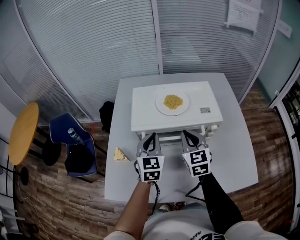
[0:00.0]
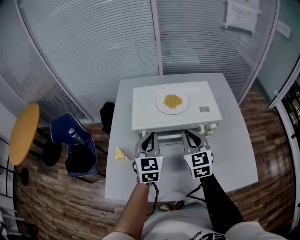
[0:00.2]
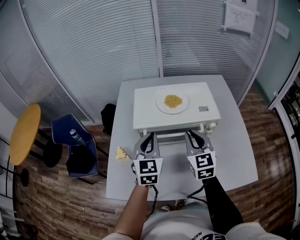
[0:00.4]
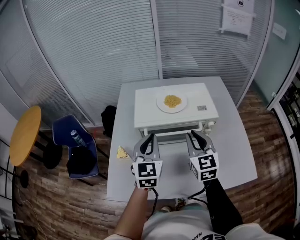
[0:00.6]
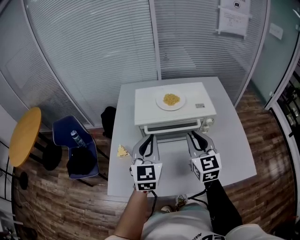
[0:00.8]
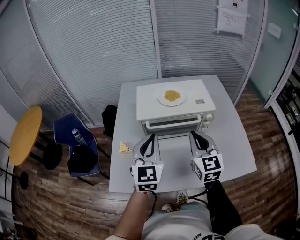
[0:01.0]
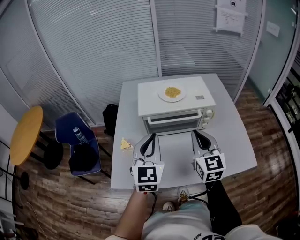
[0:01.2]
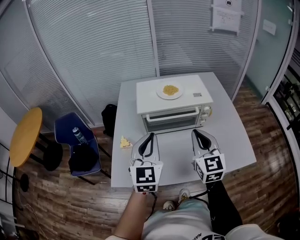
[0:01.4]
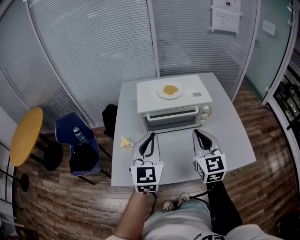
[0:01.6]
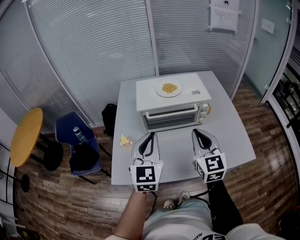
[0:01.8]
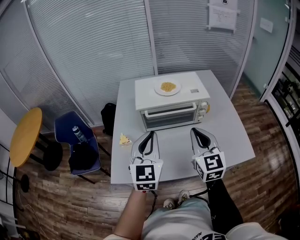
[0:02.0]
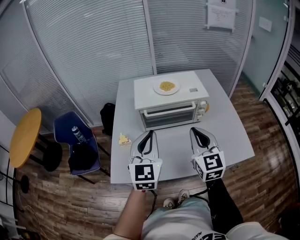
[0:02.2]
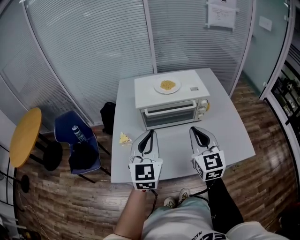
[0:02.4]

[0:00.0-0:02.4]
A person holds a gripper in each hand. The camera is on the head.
0:00.0 to 0:01.2: Both grippers move backward and upward, some 15 cm.
0:01.2 to 0:02.4: The right gripper travels backward by approximately 5 cm.

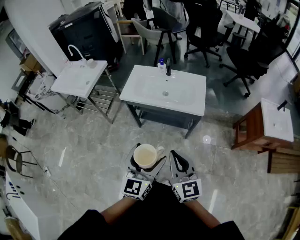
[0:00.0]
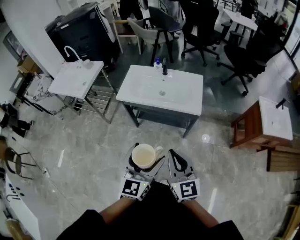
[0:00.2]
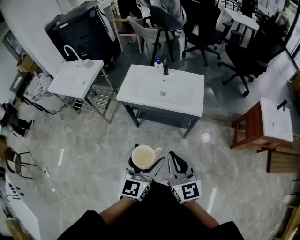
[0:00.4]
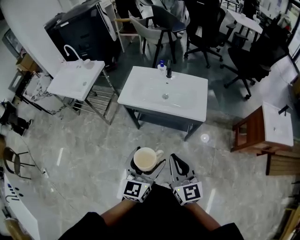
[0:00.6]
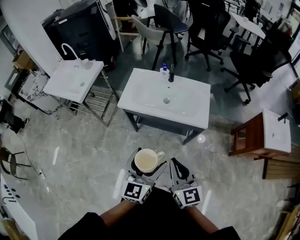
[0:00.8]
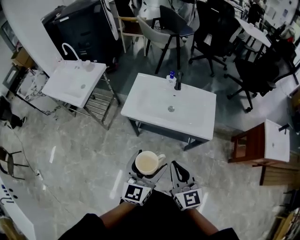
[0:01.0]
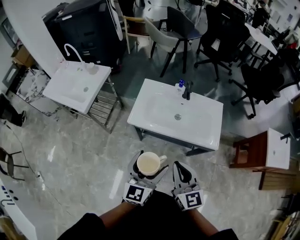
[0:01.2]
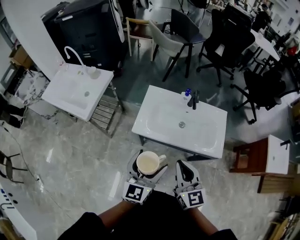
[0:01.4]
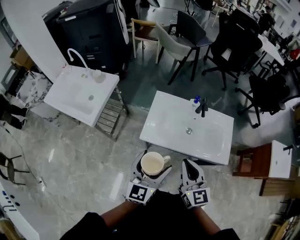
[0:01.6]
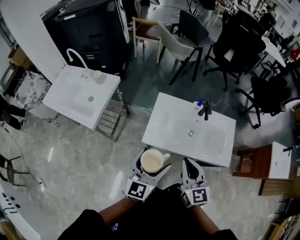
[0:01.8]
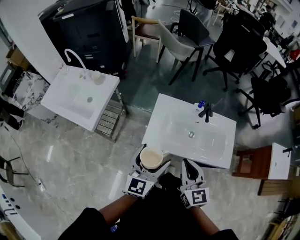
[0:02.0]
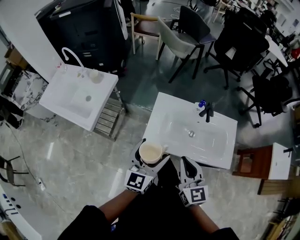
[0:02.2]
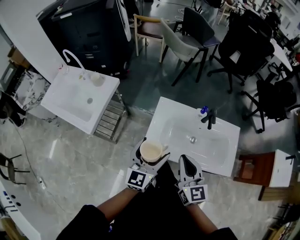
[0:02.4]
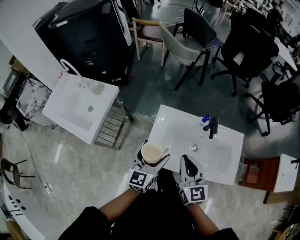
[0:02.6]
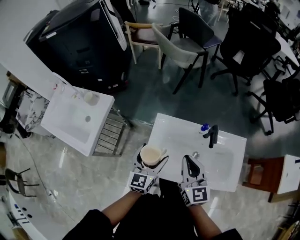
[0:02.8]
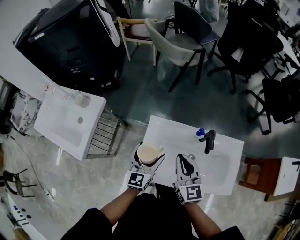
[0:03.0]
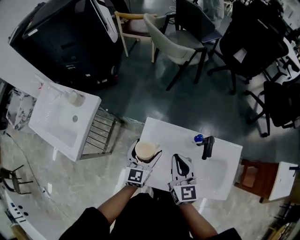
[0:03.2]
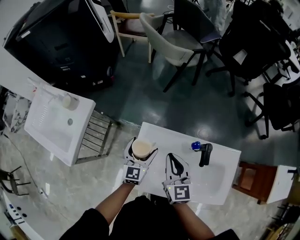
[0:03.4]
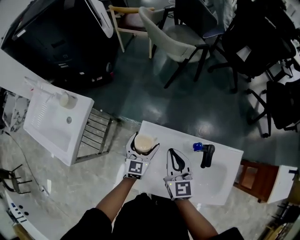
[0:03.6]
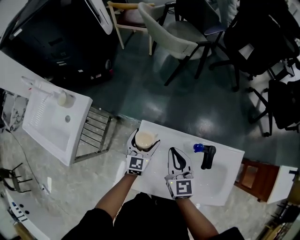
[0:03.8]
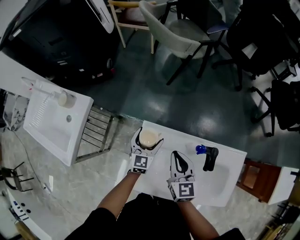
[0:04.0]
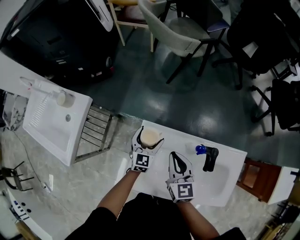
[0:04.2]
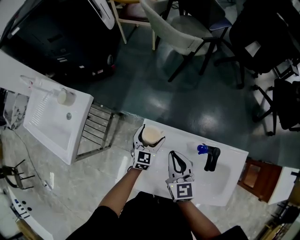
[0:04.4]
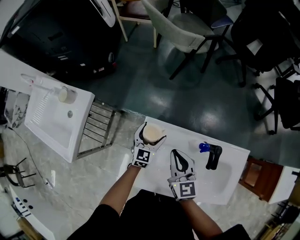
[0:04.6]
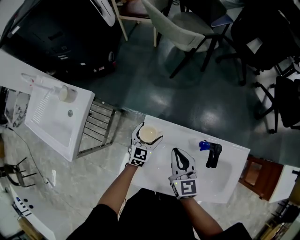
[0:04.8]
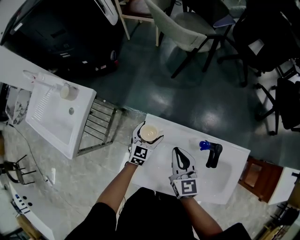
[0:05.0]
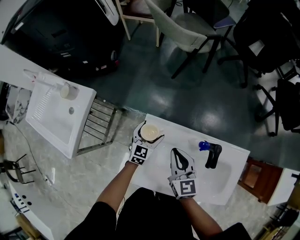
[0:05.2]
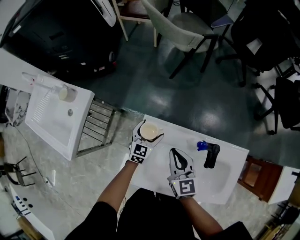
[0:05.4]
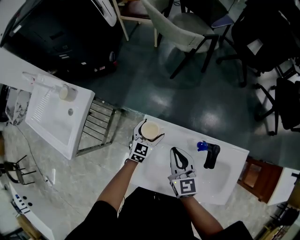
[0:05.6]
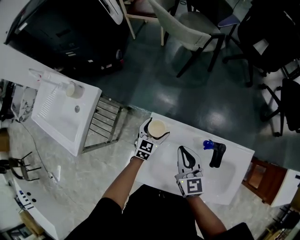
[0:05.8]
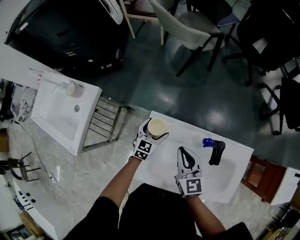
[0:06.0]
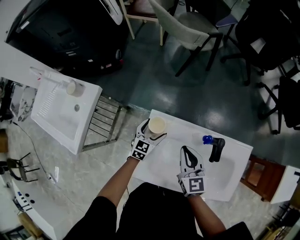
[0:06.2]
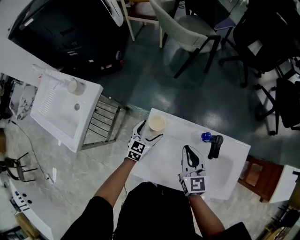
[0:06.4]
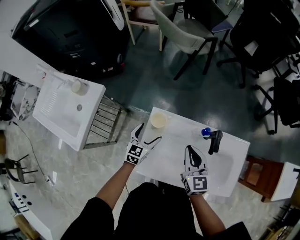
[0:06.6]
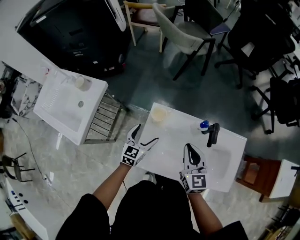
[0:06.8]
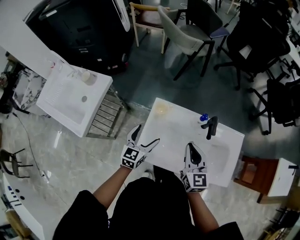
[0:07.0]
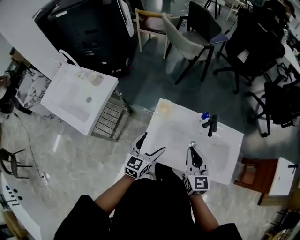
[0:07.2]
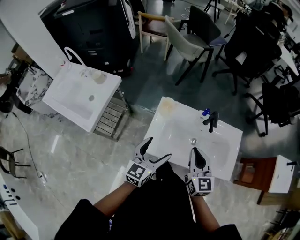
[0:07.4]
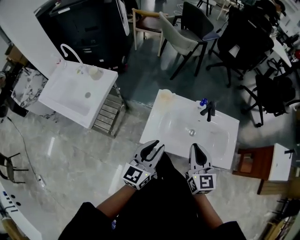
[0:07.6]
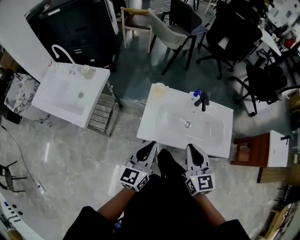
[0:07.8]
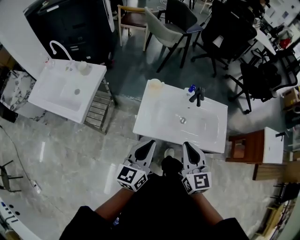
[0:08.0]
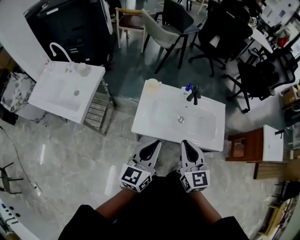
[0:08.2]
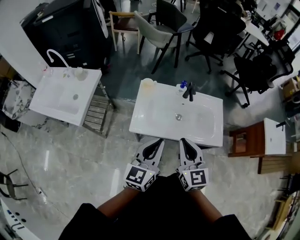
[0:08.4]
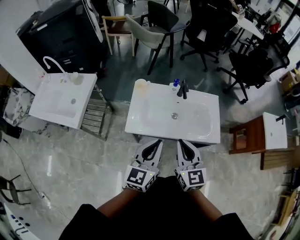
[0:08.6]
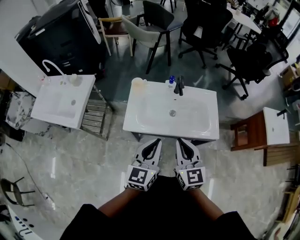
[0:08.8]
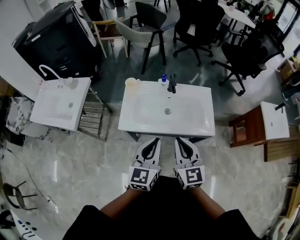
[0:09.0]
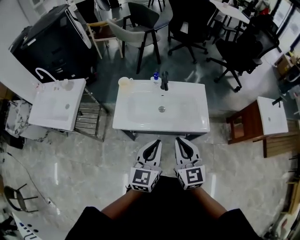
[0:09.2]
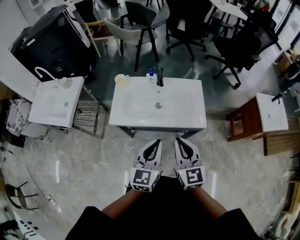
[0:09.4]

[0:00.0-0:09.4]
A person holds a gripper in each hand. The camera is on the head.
0:00.0 to 0:01.6: The two grippers travel together, forward and to the left, approximately 40 cm.
0:01.6 to 0:03.2: The right gripper is displaced forward by some 35 cm; the left gripper travels forward and downward by about 40 cm.
0:03.2 to 0:04.8: The right gripper heads downward and forward, covering approximately 10 cm. Meanwhile the left gripper heads downward and forward, covering some 20 cm.
0:04.8 to 0:06.2: The grippers stay close to where they were, moving slightly.
0:06.2 to 0:07.8: The grippers both shift backward and upward by roughly 40 cm. The left gripper rotates approximately 30 degrees, and closes its fingers.
0:07.8 to 0:09.4: The two grippers go about 25 cm to the right and backward.

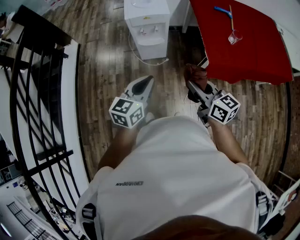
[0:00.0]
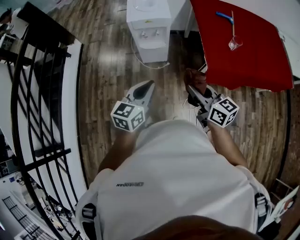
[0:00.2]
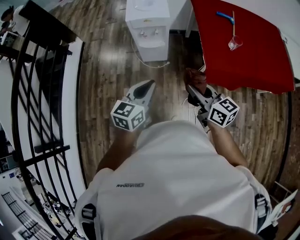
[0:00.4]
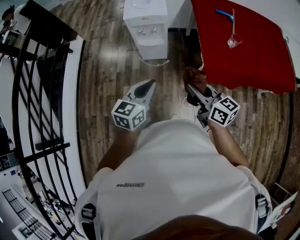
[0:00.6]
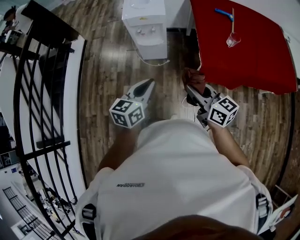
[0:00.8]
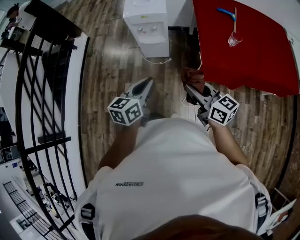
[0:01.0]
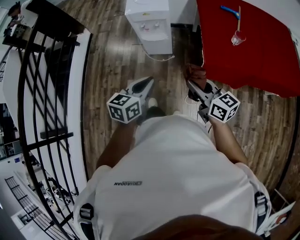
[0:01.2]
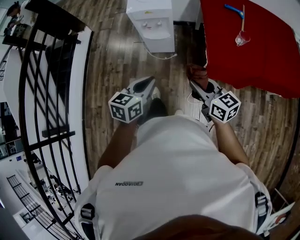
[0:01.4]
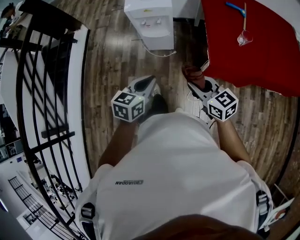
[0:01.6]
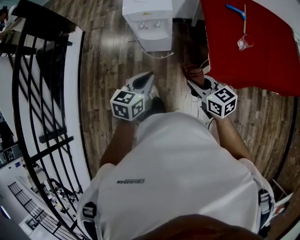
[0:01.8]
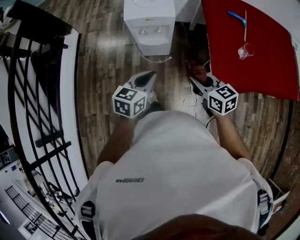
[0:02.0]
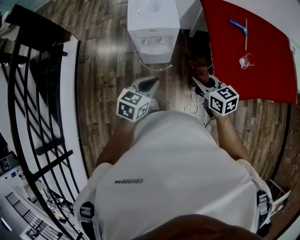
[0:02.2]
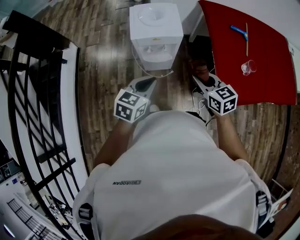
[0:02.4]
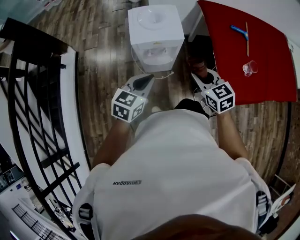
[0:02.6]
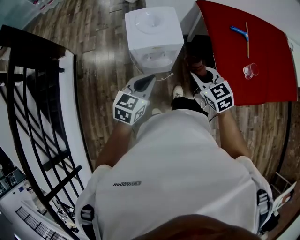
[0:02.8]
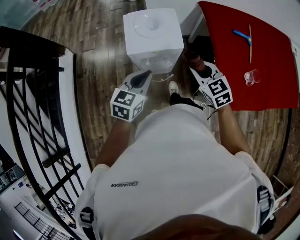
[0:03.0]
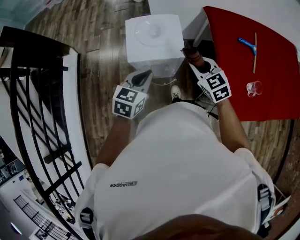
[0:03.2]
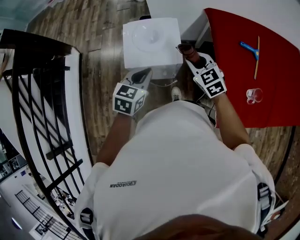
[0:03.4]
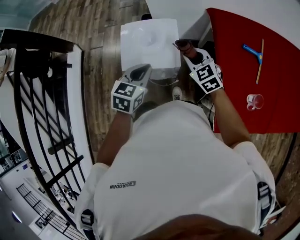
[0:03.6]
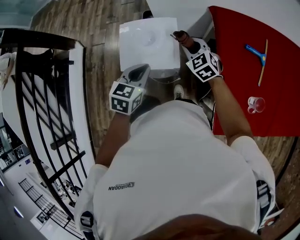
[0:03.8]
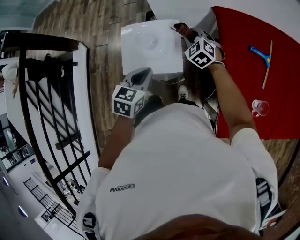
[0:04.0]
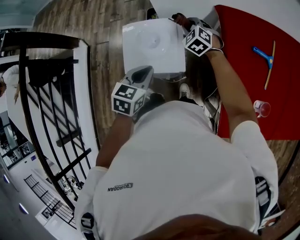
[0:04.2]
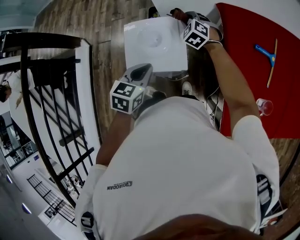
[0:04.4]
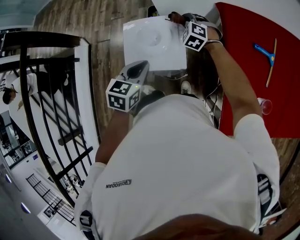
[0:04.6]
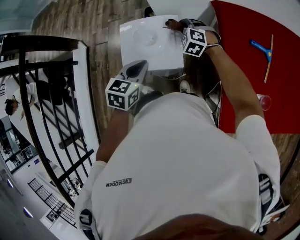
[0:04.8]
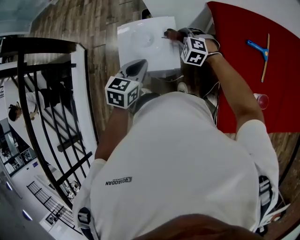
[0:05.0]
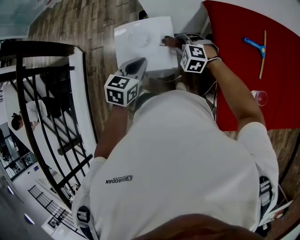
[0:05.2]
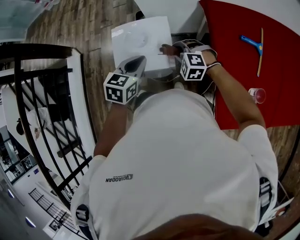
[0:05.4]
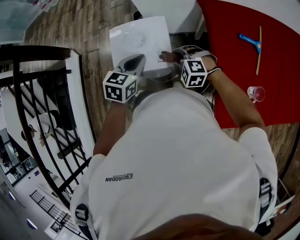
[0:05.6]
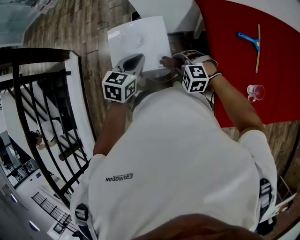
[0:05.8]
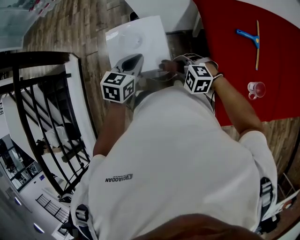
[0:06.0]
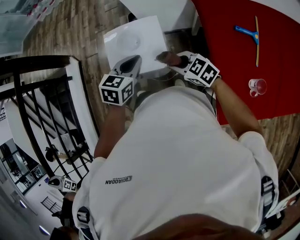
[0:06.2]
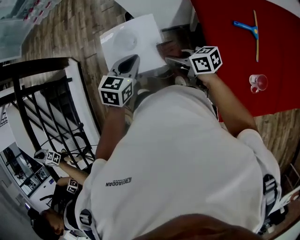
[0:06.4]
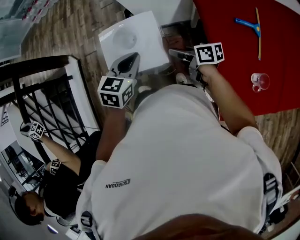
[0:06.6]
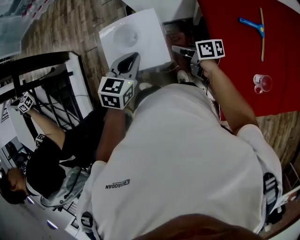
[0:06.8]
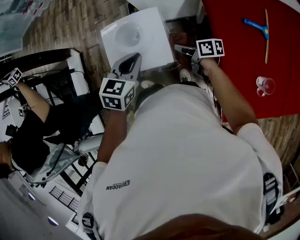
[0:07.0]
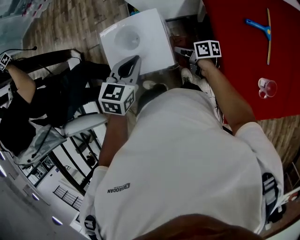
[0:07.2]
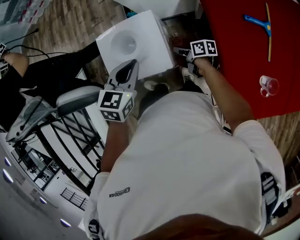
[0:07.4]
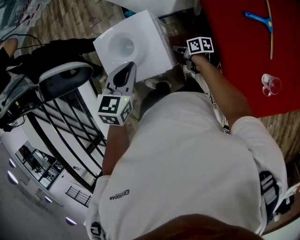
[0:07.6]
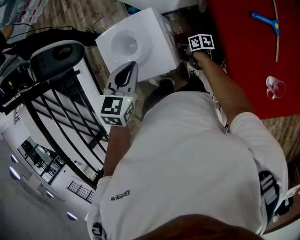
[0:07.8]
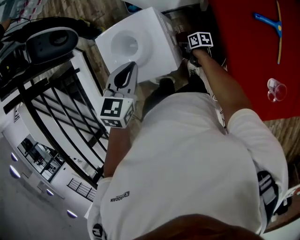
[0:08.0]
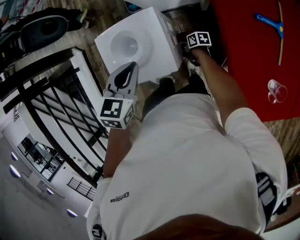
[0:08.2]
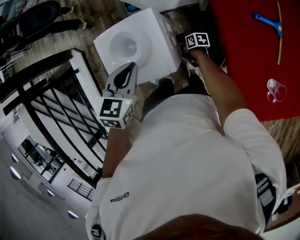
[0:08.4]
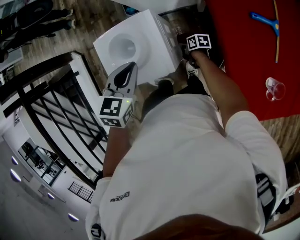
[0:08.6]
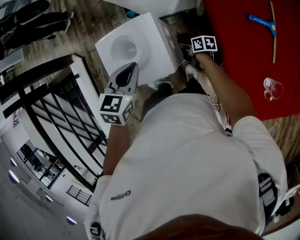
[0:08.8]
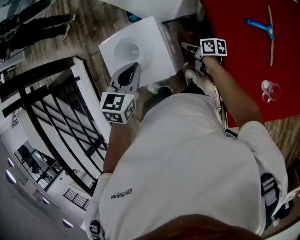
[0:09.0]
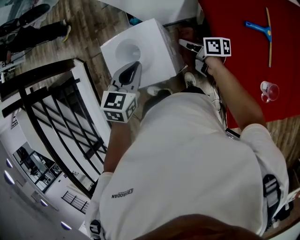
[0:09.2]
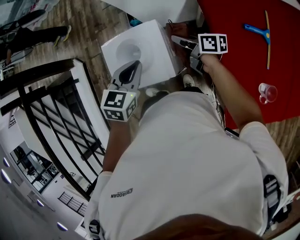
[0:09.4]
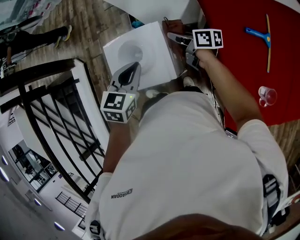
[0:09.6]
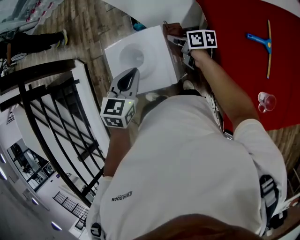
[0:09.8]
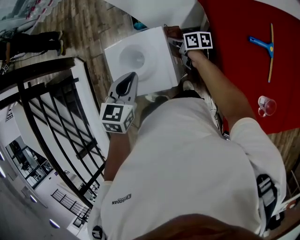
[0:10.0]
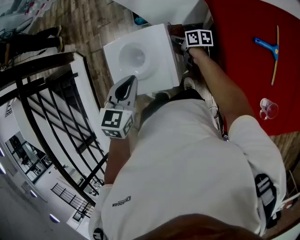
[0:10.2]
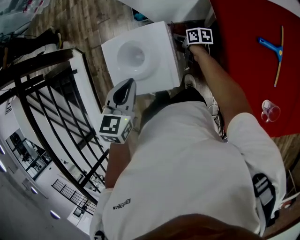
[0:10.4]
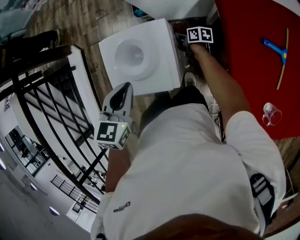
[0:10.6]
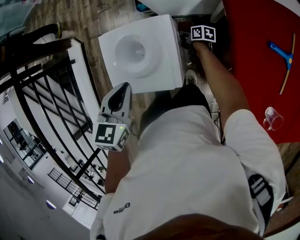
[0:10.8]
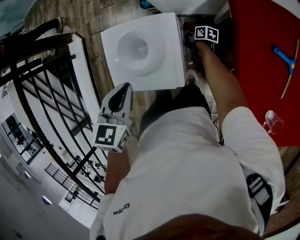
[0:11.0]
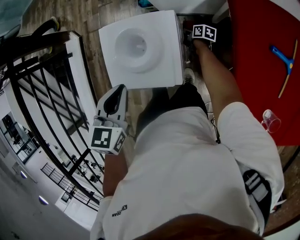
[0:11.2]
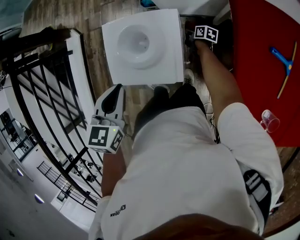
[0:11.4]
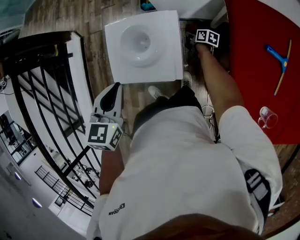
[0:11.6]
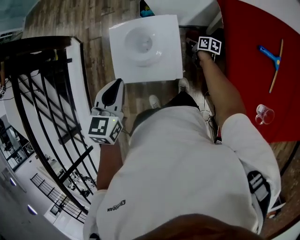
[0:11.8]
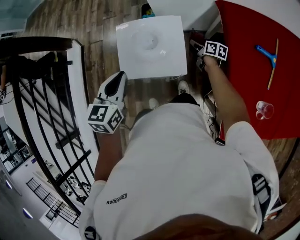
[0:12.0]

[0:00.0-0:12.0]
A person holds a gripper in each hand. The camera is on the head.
0:00.0 to 0:01.6: Both grippers move to the right and downward, some 10 cm.
0:01.6 to 0:03.0: The grippers both shift forward by roughly 35 cm. The right gripper turns by about 30 degrees.
0:03.0 to 0:04.4: The left gripper goes roughly 15 cm forward; the right gripper heads forward, covering roughly 35 cm, and turns by about 30 degrees.
0:04.4 to 0:06.0: The right gripper heads backward, covering some 25 cm, and rotates some 30 degrees.
0:06.0 to 0:07.6: The right gripper heads downward and forward, covering some 25 cm, and rolls clockwise, seen from behind, by about 100 degrees.
0:07.6 to 0:09.0: The right gripper travels upward by approximately 5 cm.
0:09.0 to 0:10.4: The right gripper moves forward, some 10 cm, and goes upward and returns, about 15 cm each way.
0:10.4 to 0:12.0: The right gripper heads backward, covering approximately 5 cm, and moves some 15 cm downward and comes back; the left gripper heads to the left, covering roughly 10 cm.
